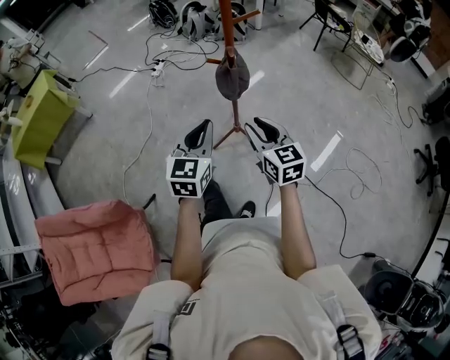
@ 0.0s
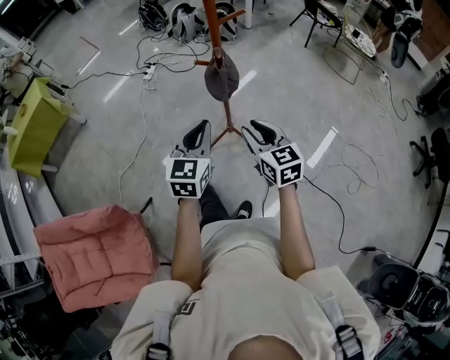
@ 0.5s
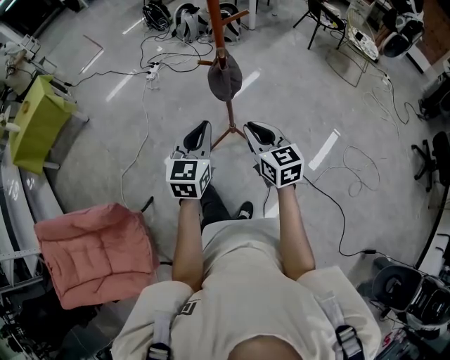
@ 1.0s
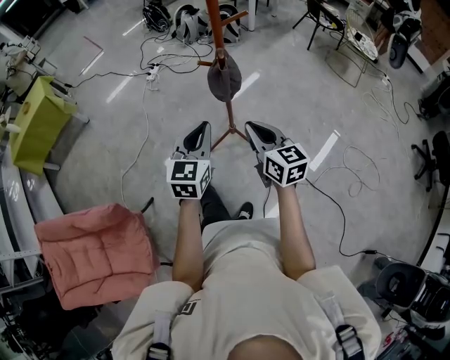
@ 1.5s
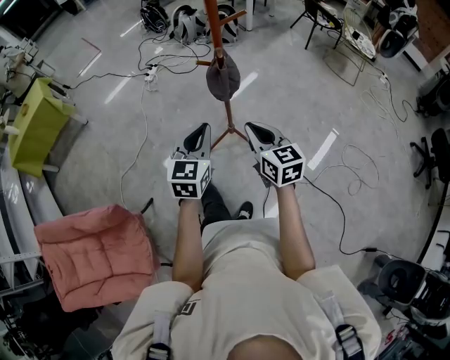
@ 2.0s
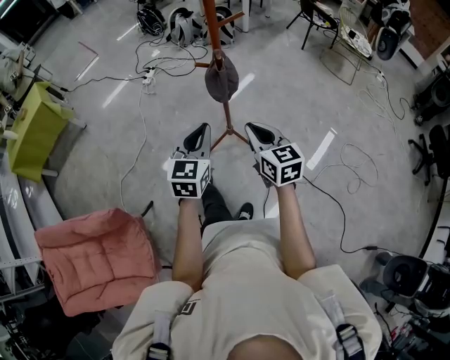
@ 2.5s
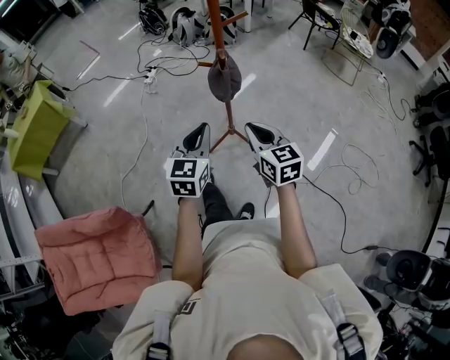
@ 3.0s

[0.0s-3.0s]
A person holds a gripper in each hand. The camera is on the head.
0.0s to 1.5s: The right gripper closes.
1.5s to 3.0s: The grippers make only small movements.

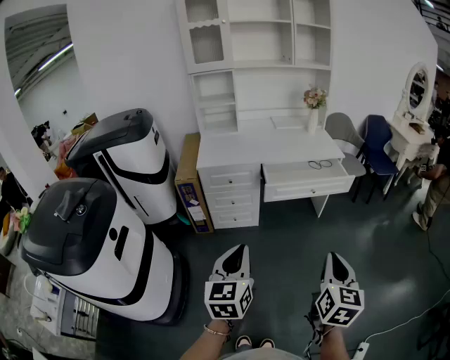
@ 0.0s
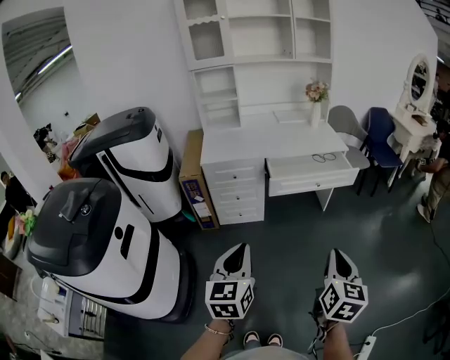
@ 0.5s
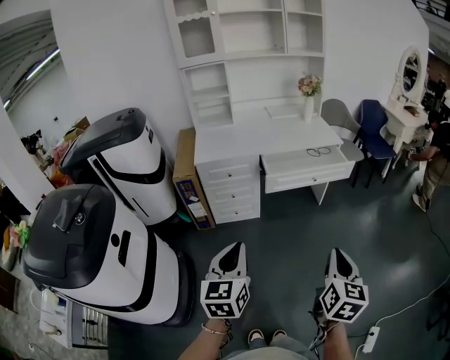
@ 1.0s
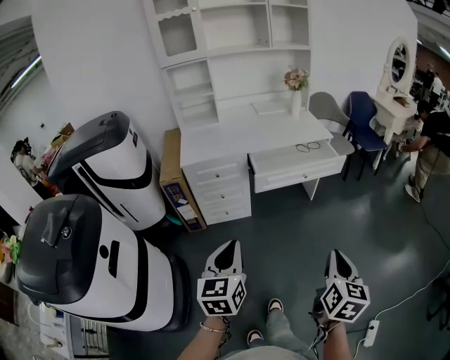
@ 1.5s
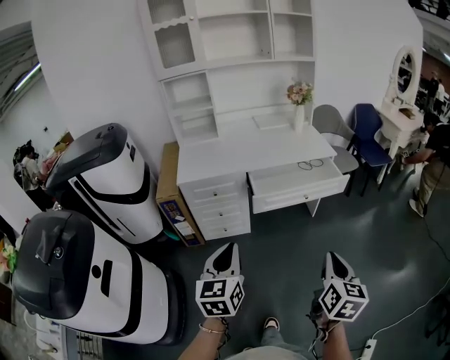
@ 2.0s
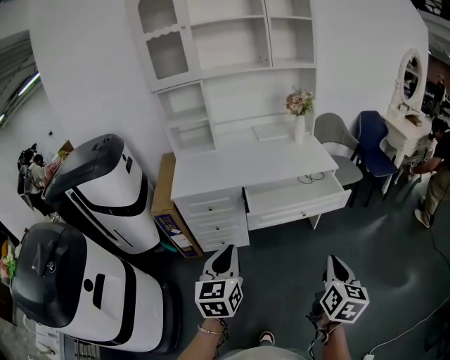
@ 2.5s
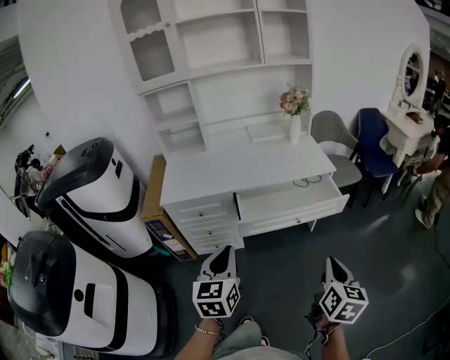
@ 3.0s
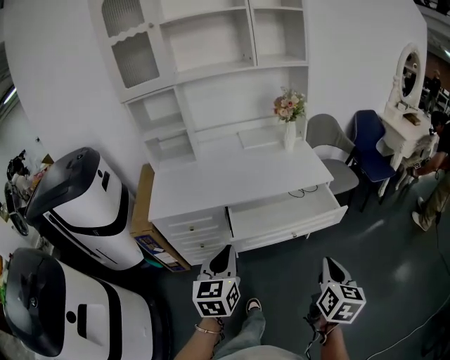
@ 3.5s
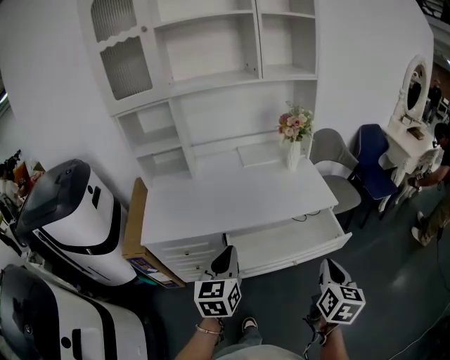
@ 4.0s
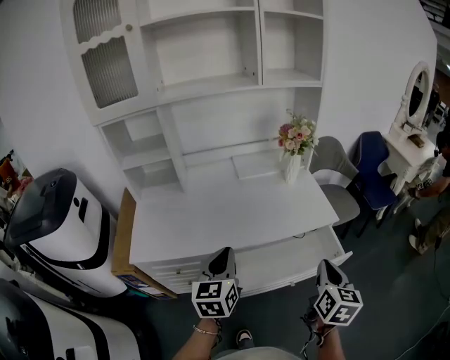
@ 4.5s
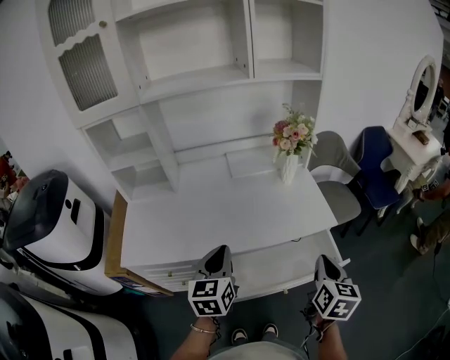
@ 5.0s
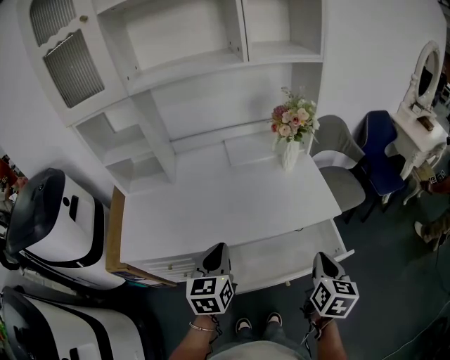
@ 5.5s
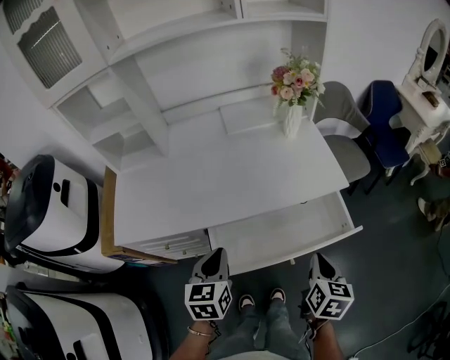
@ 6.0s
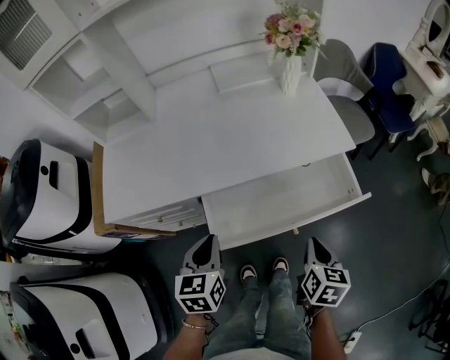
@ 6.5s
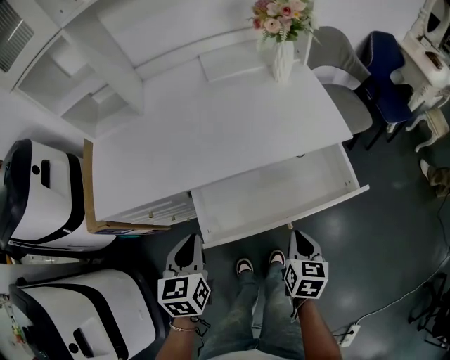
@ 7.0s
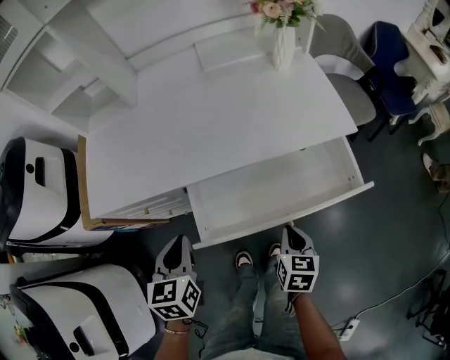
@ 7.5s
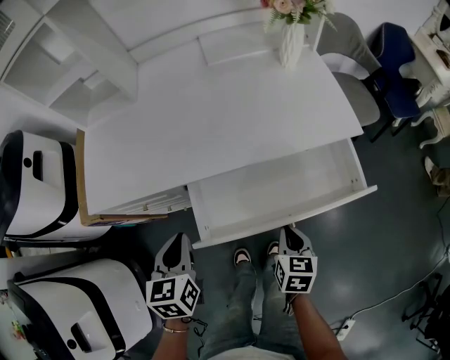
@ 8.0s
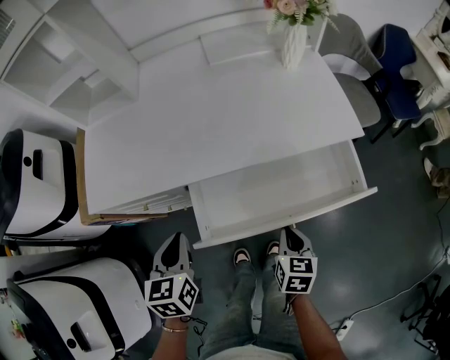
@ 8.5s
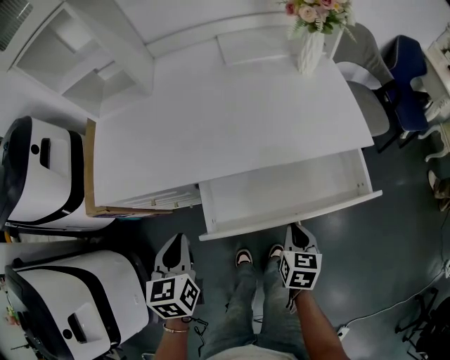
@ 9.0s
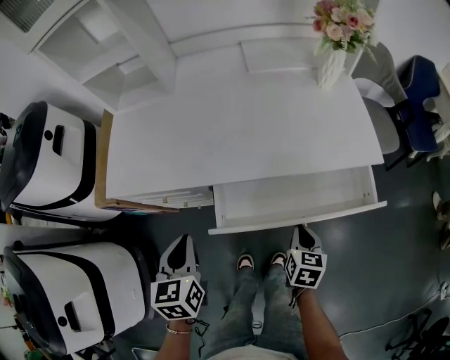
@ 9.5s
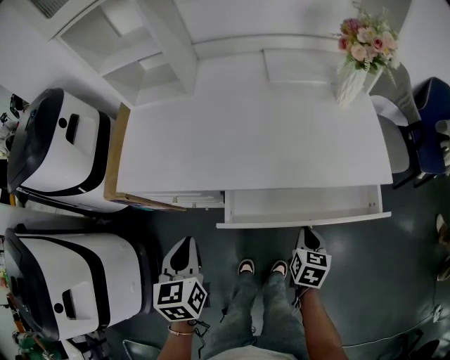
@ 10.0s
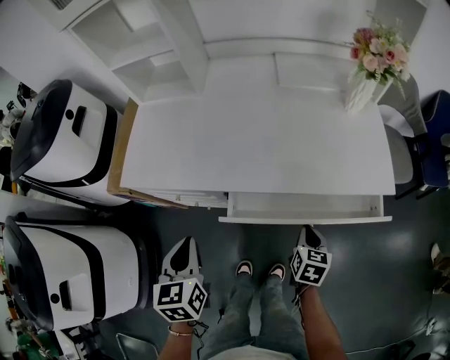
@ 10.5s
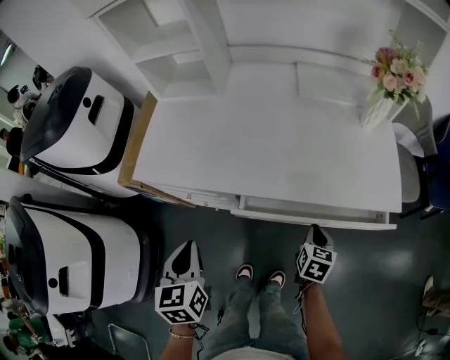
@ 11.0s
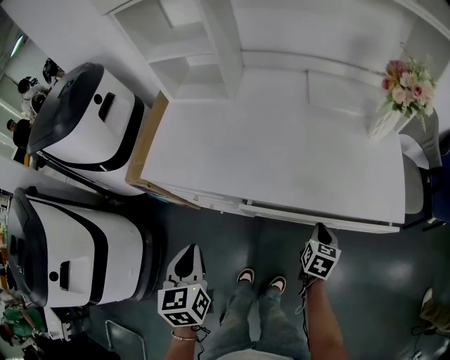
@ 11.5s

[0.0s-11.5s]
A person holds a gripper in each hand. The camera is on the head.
0.0s to 2.0s: Both grippers travel together forward, about 10 cm.
2.0s to 4.0s: The two grippers go approximately 35 cm forward.
4.0s to 6.0s: The two grippers go about 15 cm downward and forward.
6.0s to 7.5s: The right gripper is displaced downward by some 15 cm. The left gripper heads to the left and downward, covering approximately 10 cm.
7.5s to 9.5s: The right gripper changes place by about 5 cm.
9.5s to 11.5s: The right gripper shifts some 10 cm forward, while the left gripper changes place by roughly 5 cm.

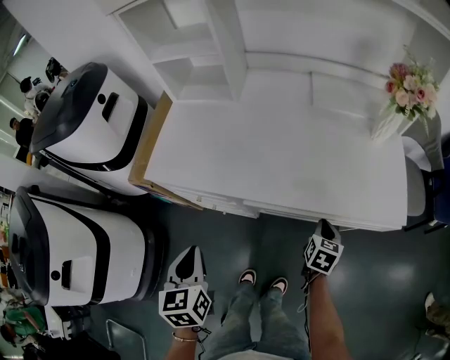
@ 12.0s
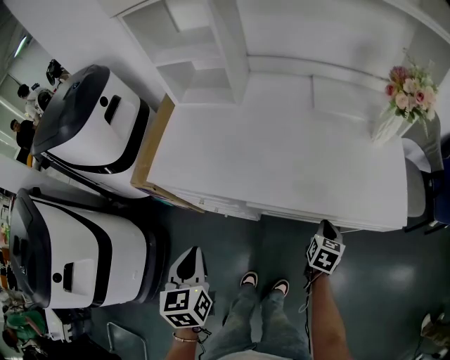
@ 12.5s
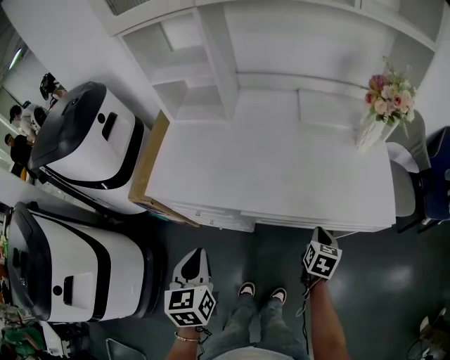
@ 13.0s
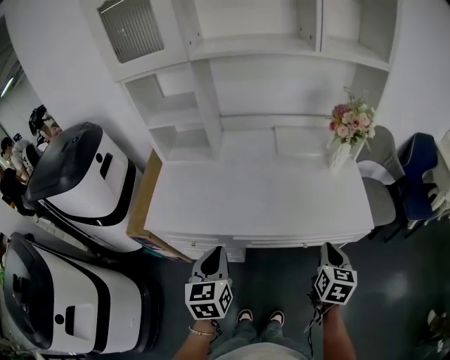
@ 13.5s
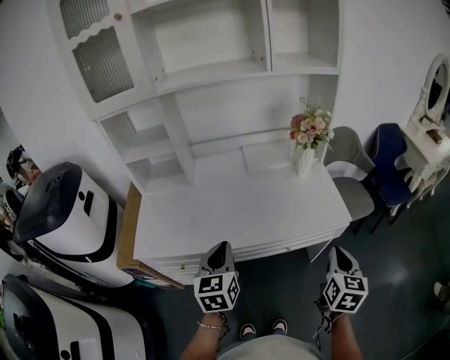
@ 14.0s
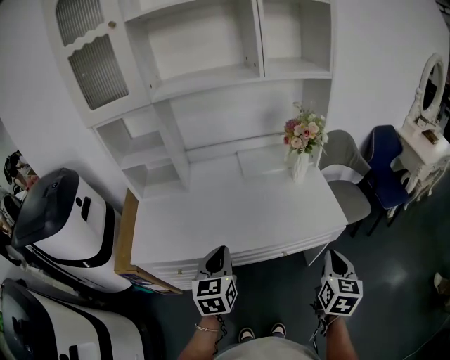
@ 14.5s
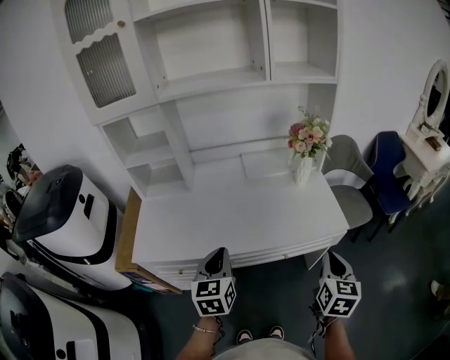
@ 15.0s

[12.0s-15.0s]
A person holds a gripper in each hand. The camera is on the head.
12.0s to 13.5s: The left gripper travels to the right, forward and upward by about 10 cm, and swivels approximately 20 degrees. The right gripper heads upward, covering about 20 cm.
13.5s to 15.0s: The right gripper goes approximately 10 cm upward and to the right. Meanwhile the left gripper is displaced to the right by some 5 cm.

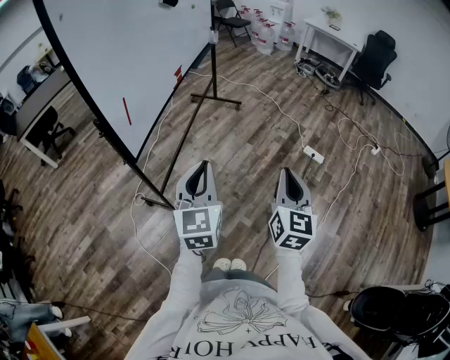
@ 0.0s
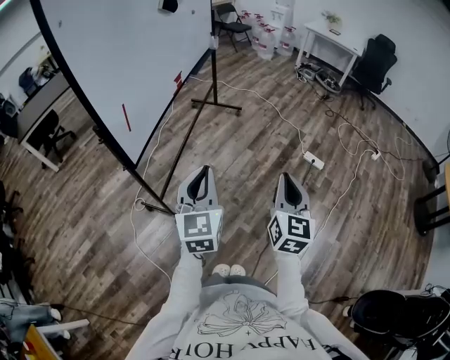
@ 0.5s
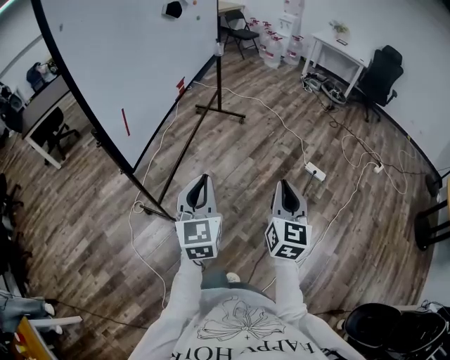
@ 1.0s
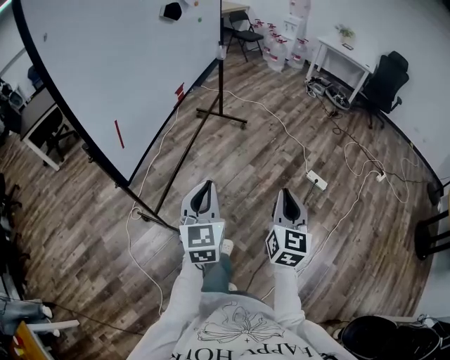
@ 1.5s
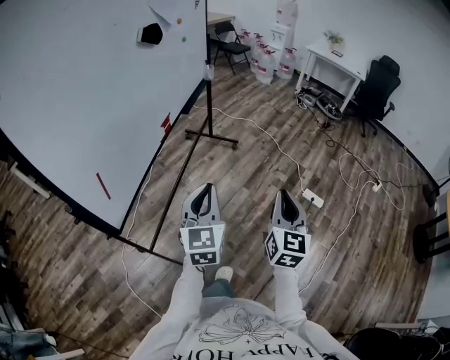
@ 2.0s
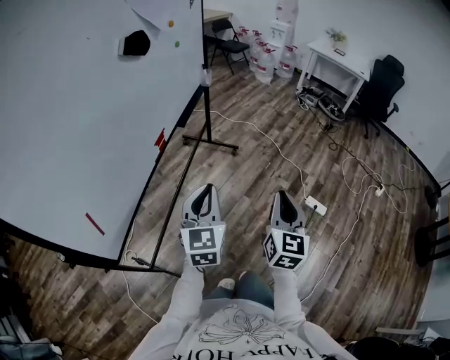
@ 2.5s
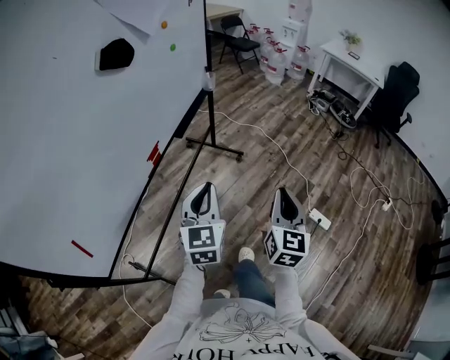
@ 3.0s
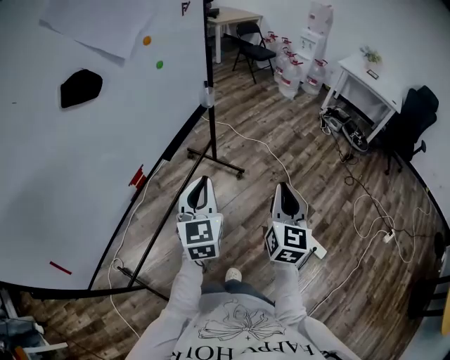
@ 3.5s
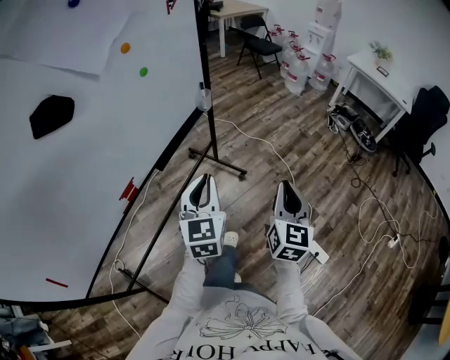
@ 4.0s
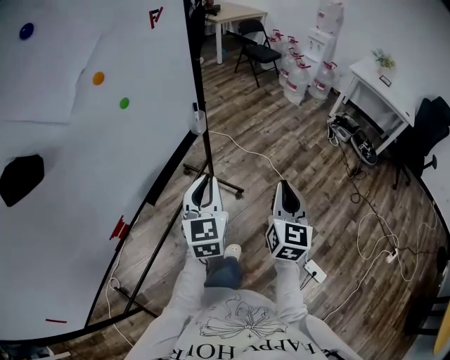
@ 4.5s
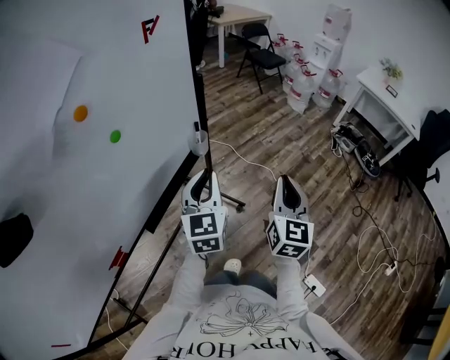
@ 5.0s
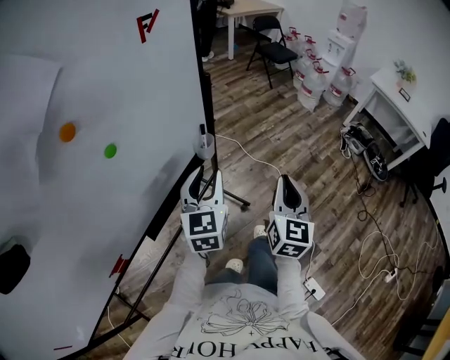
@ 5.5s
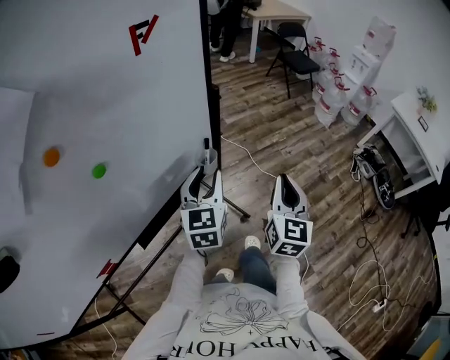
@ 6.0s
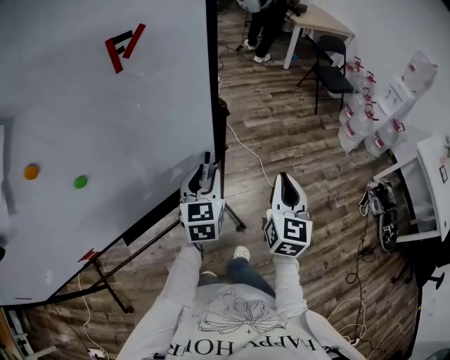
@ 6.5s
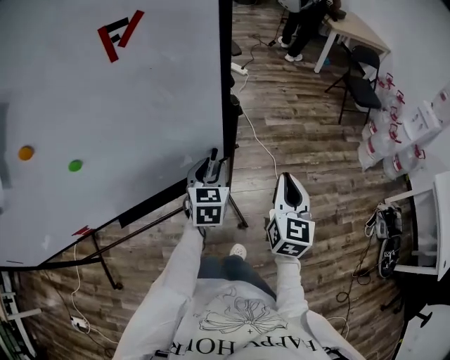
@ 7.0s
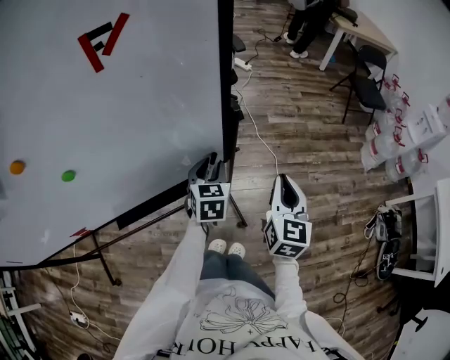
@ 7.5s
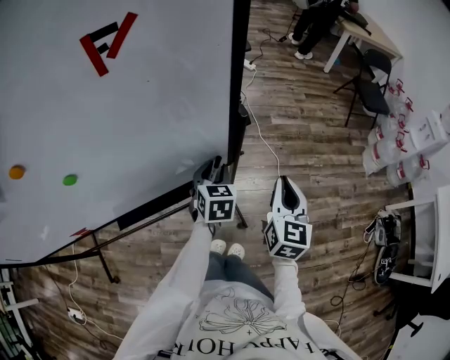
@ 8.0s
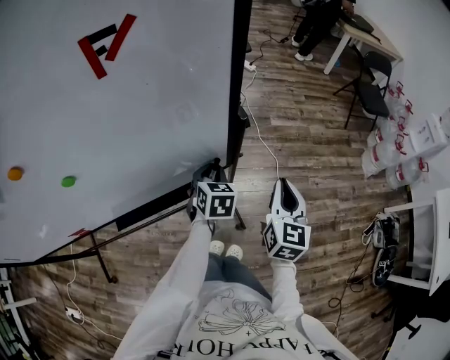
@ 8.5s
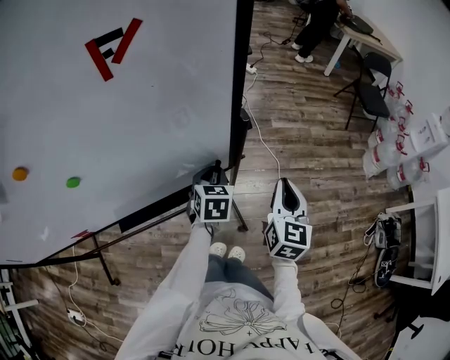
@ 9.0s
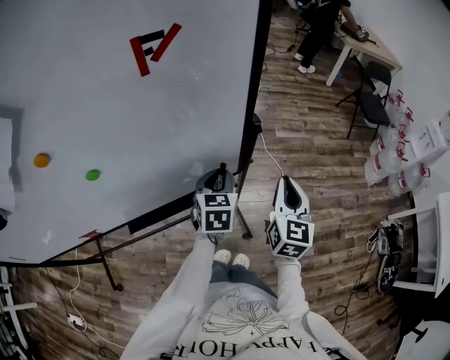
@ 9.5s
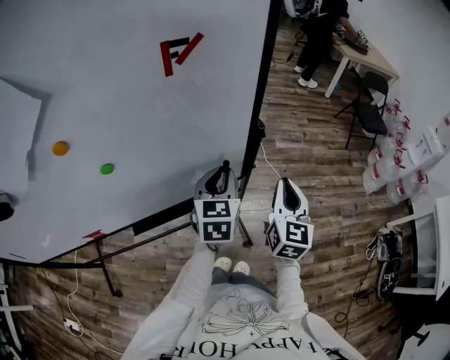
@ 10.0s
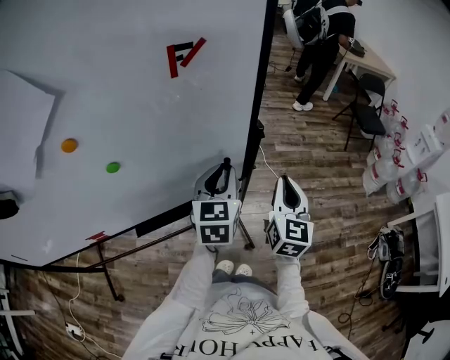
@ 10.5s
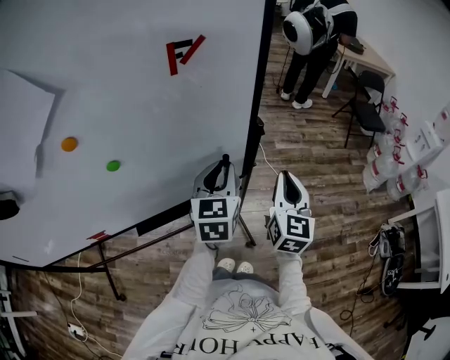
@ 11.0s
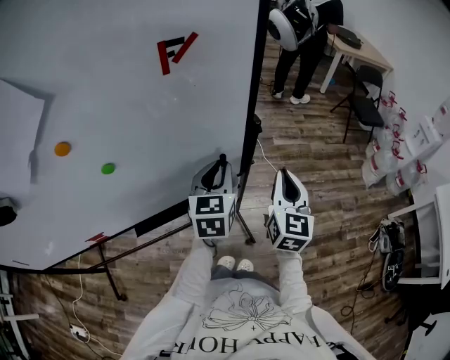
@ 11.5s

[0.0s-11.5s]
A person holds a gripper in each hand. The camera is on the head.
0.0s to 2.0s: Both grippers travel together forward, approximately 25 cm.
2.0s to 4.0s: Both grippers are carried forward, approximately 50 cm.
4.0s to 6.0s: The two grippers travel together, forward, some 40 cm. The left gripper opens its fingers.
6.0s to 7.5s: The left gripper heads forward and downward, covering about 20 cm, and changes its angle by about 30 degrees. Meanwhile the right gripper shifts roughly 20 cm forward, and turns by about 30 degrees.
7.5s to 9.5s: The grippers stay close to where they were, moving slightly.
9.5s to 11.5s: The right gripper moves about 5 cm, while the left gripper heads upward, covering approximately 10 cm.
